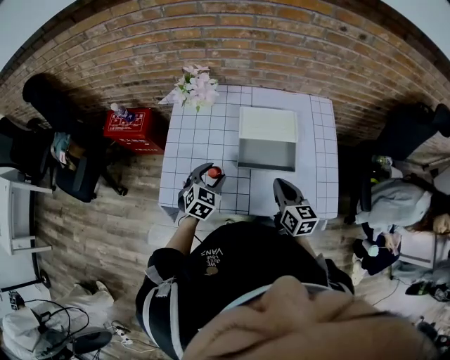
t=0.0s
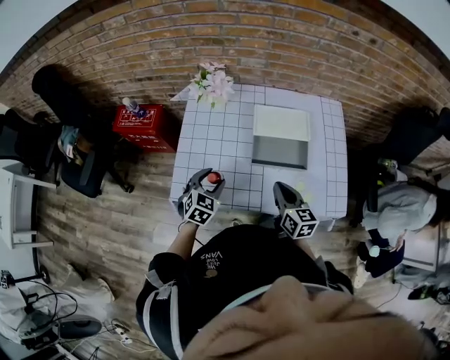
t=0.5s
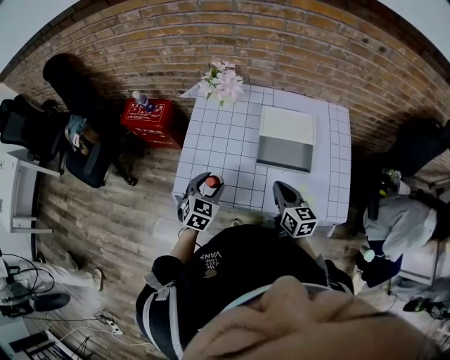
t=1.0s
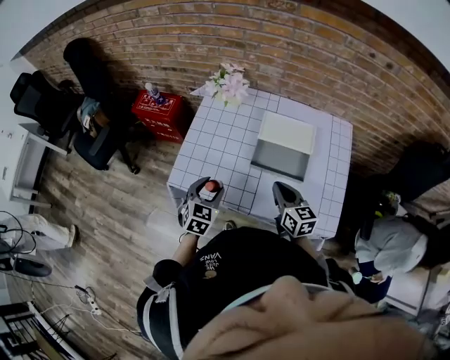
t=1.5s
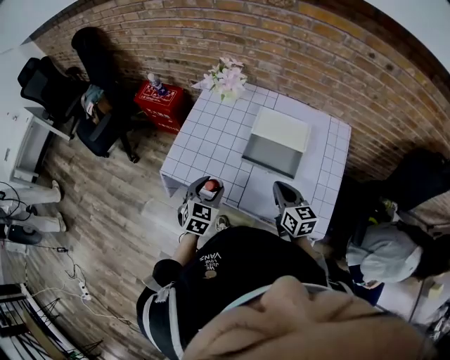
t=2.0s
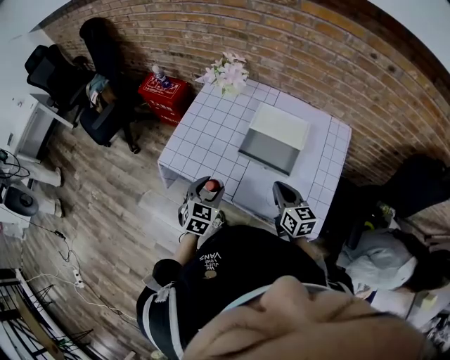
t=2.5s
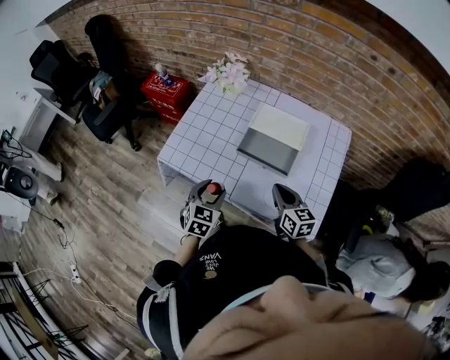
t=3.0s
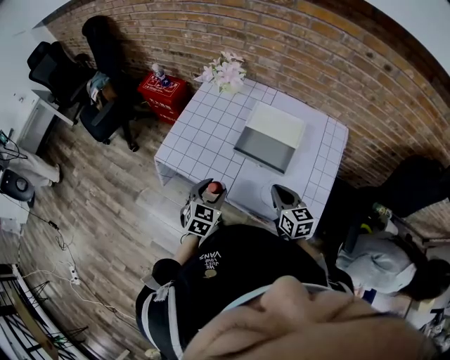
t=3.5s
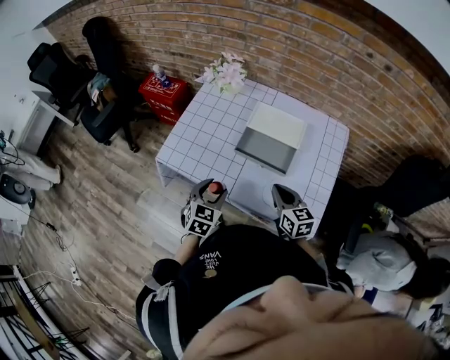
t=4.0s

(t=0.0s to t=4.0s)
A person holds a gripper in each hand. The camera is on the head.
t=0.0s - t=2.0s: The right gripper reaches approximately 5 cm to the left, then returns, and turns by some 20 degrees, while the left gripper moves backward, approximately 10 cm, and changes its angle by approximately 20 degrees.
t=2.0s - t=4.0s: The left gripper moves approximately 5 cm. Meanwhile the right gripper changes place by approximately 5 cm.

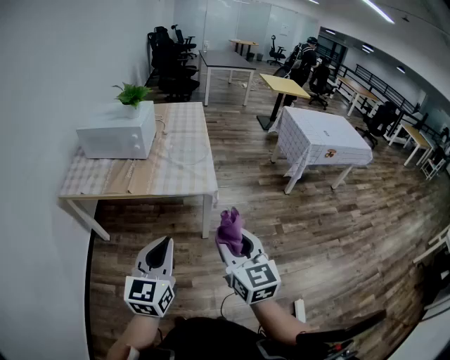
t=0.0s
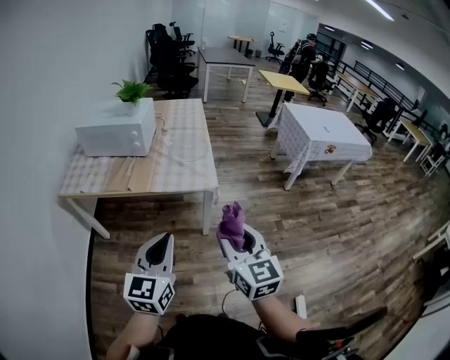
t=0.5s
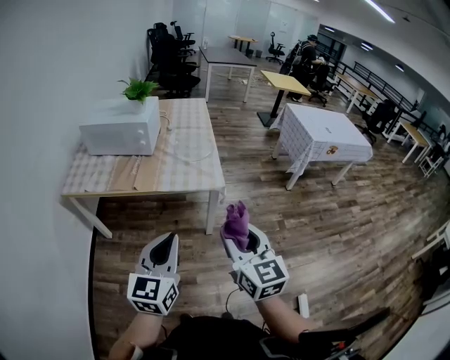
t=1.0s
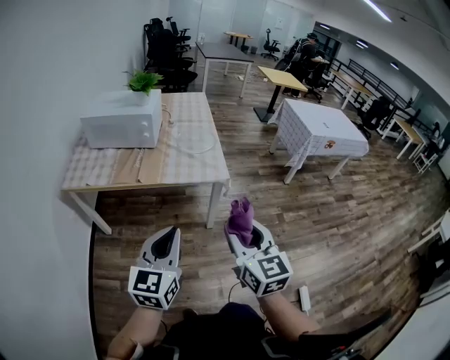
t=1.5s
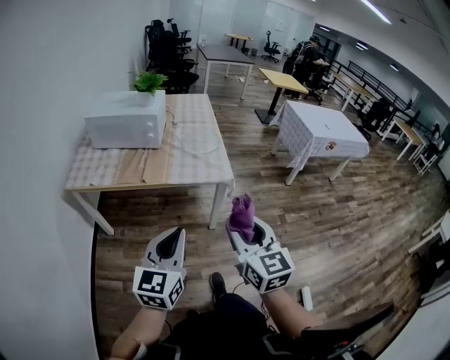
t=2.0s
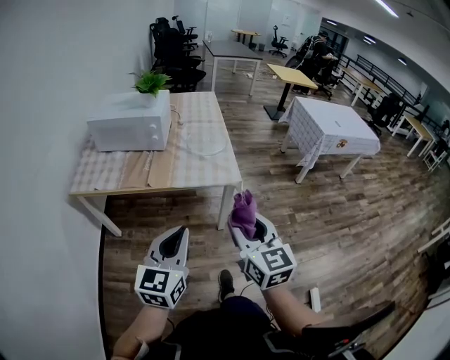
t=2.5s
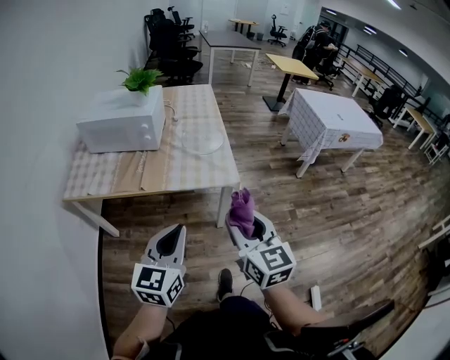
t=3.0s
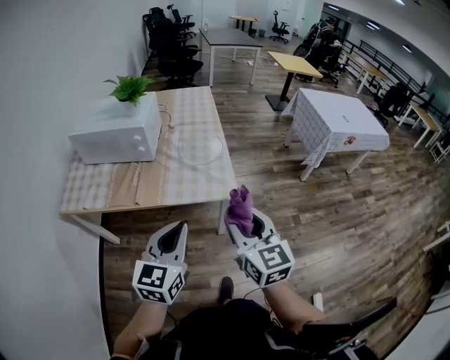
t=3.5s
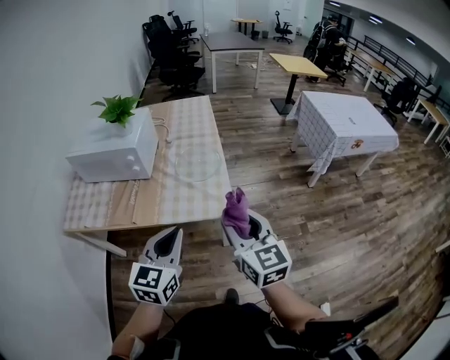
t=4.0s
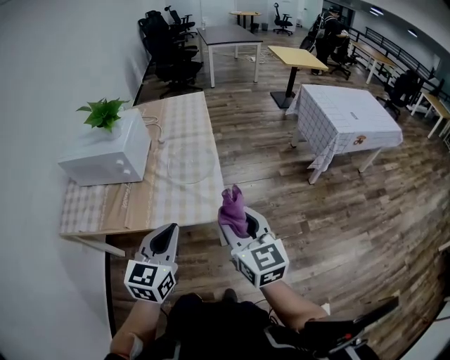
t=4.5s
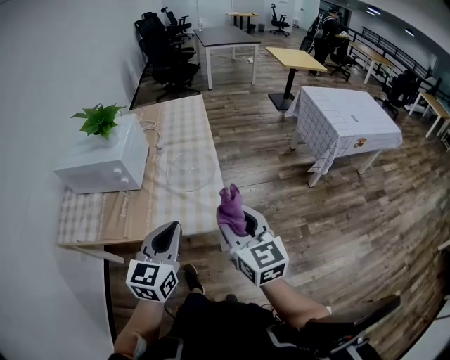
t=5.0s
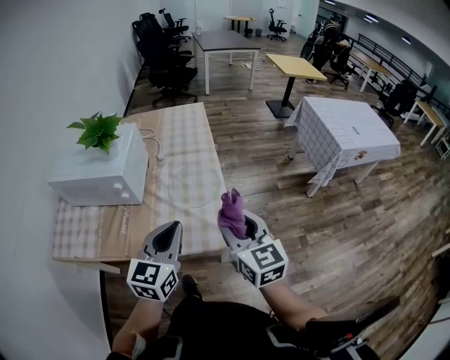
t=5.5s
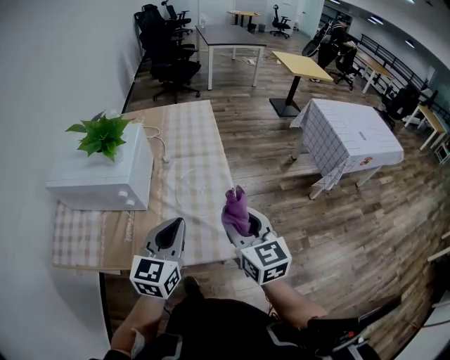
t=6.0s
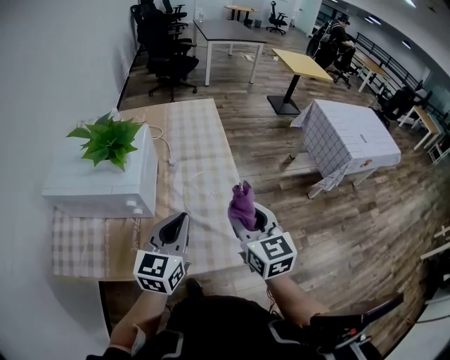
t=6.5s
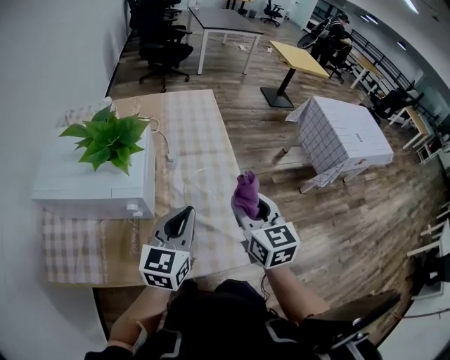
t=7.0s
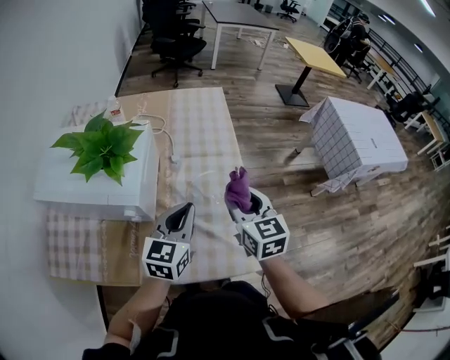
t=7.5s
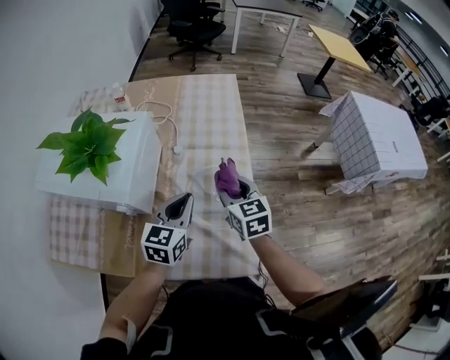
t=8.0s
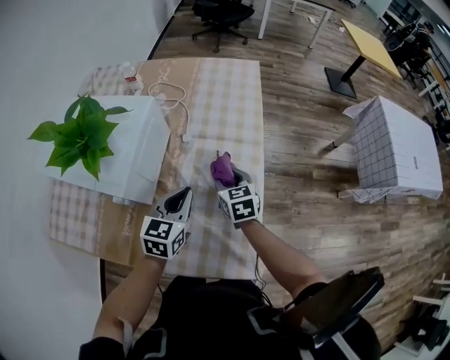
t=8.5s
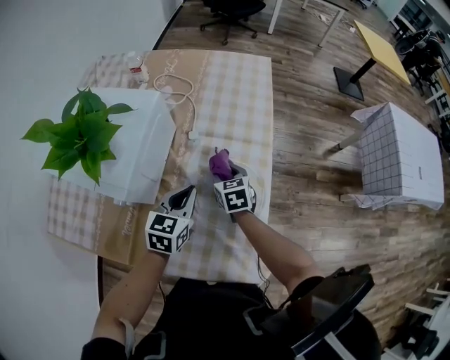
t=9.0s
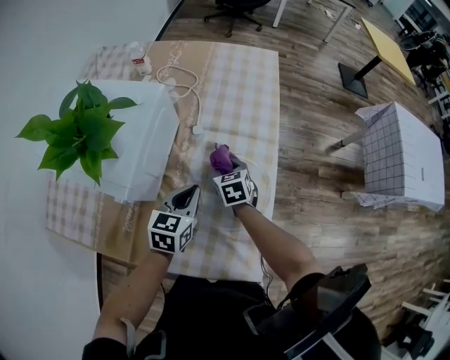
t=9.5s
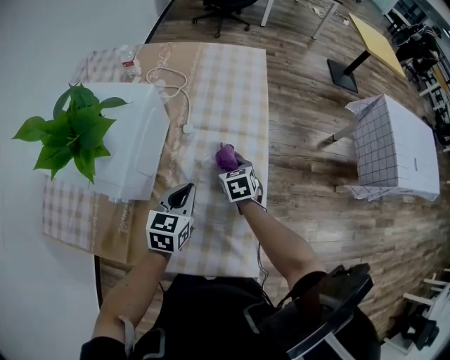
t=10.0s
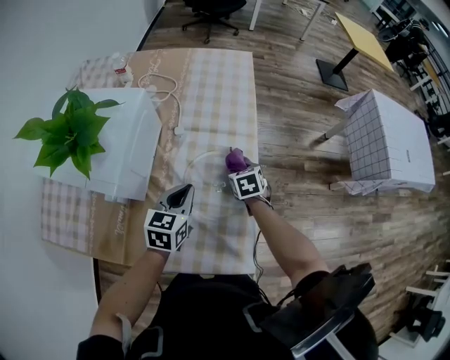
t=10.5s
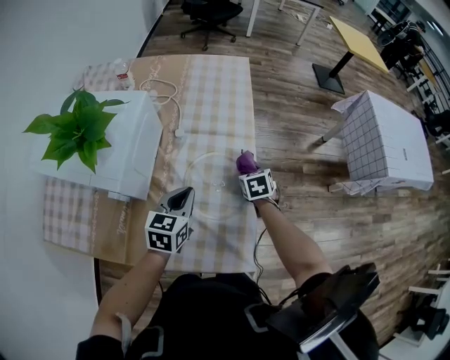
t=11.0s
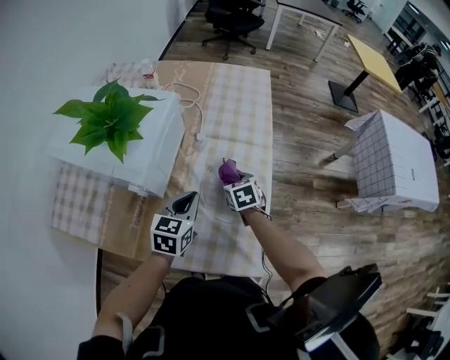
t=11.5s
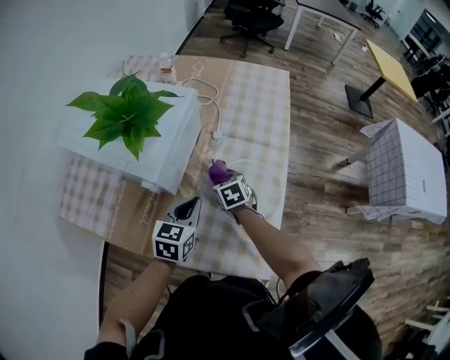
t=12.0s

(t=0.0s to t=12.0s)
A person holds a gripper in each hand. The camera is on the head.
t=0.0s - t=2.0s: The grippers both shift to the left by roughly 10 cm.
t=2.0s - t=4.0s: The two grippers go some 25 cm forward.
t=4.0s - t=6.0s: The two grippers go approximately 25 cm forward.
t=6.0s - t=8.0s: The two grippers go some 25 cm forward and downward.
t=8.0s - t=10.0s: The right gripper moves downward and forward, some 20 cm, and swivels approximately 20 degrees. The left gripper moves downward, about 10 cm.
t=10.0s - t=12.0s: The left gripper travels backward and to the left by some 10 cm, while the right gripper travels to the left and backward by roughly 10 cm.

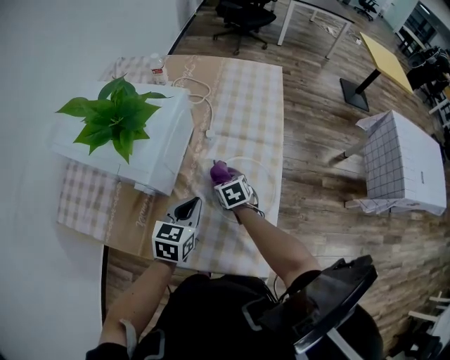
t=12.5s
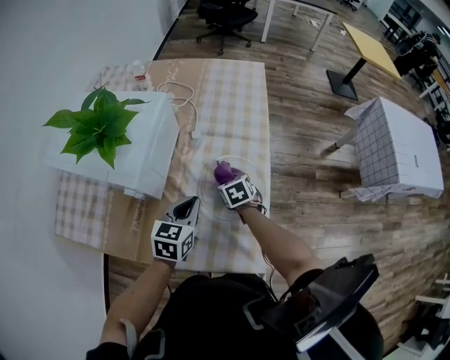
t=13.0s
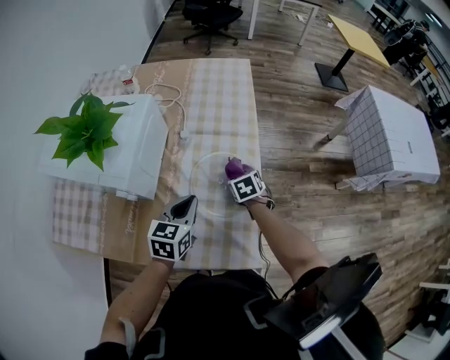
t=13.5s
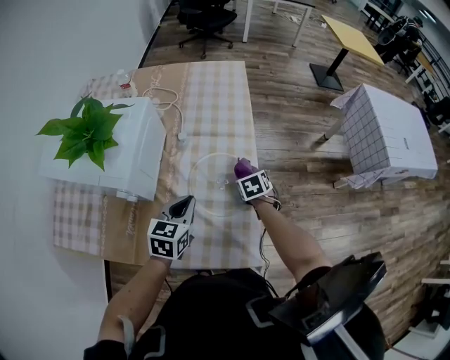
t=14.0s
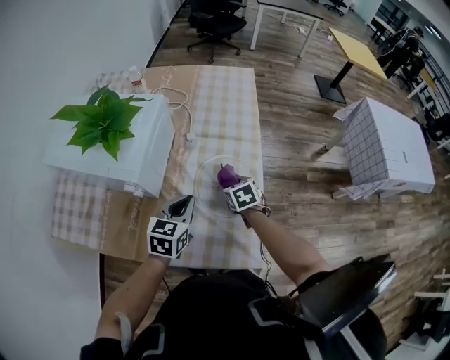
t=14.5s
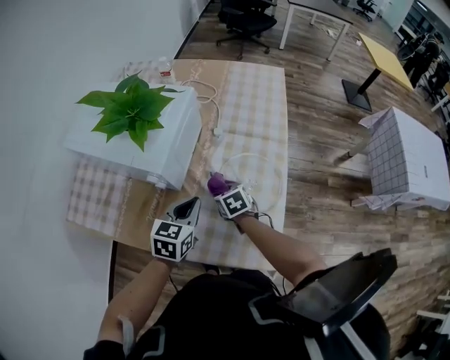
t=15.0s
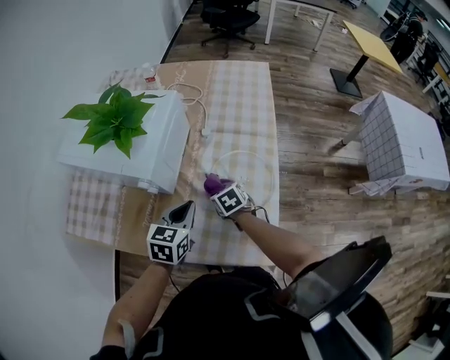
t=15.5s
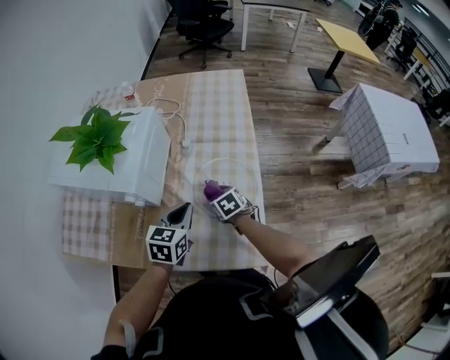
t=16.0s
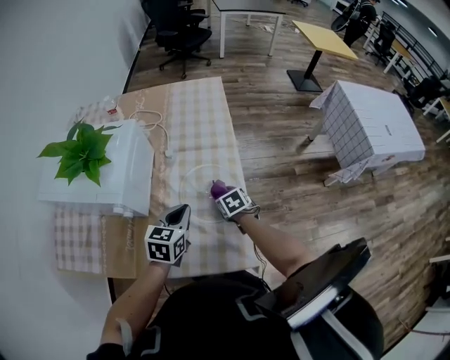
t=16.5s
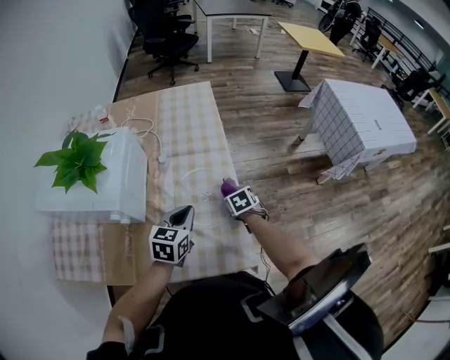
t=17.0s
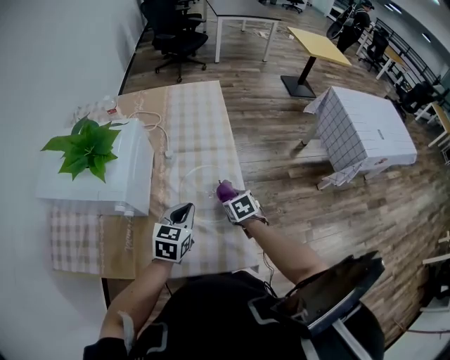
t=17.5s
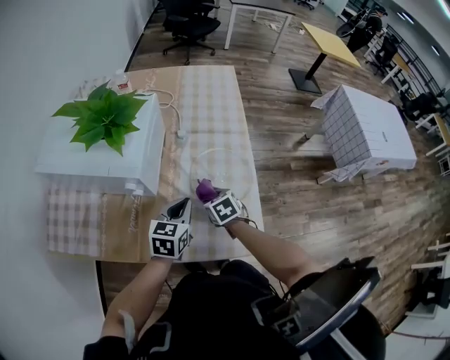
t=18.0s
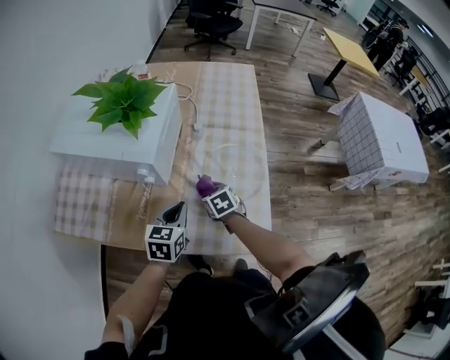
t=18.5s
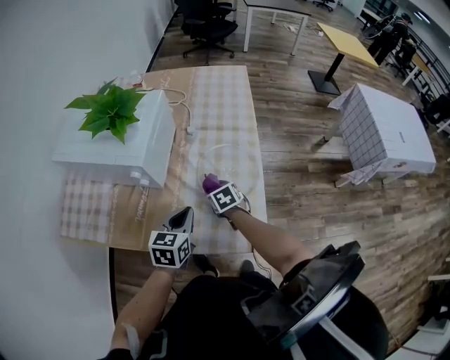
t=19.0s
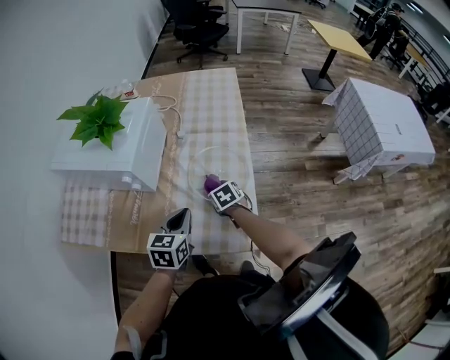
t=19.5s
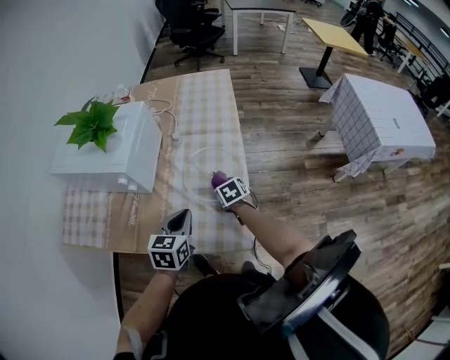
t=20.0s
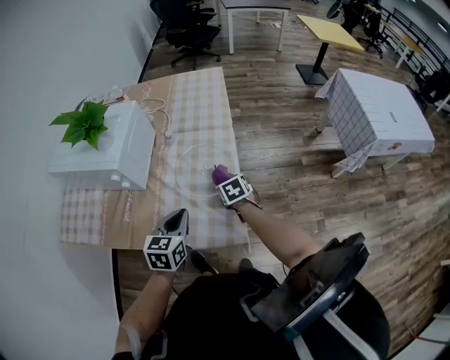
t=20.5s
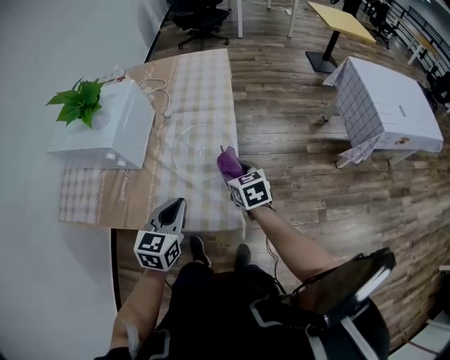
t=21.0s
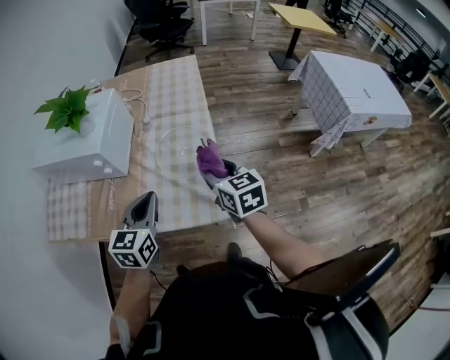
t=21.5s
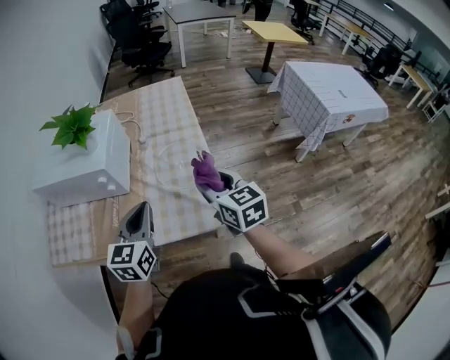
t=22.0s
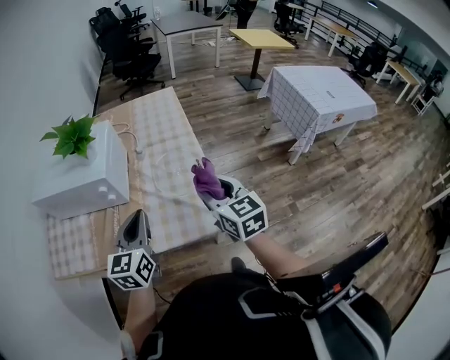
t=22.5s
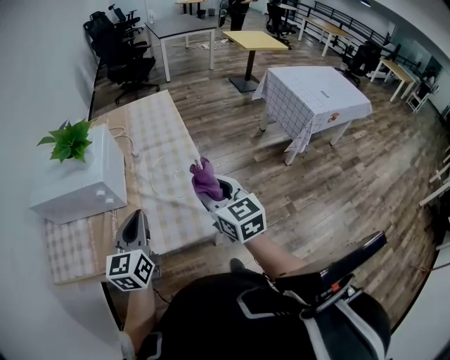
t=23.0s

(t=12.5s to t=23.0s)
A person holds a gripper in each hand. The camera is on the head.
t=12.5s - t=14.5s: The right gripper goes about 10 cm to the right.
t=14.5s - t=16.5s: The right gripper moves about 10 cm to the left and comes back.
t=16.5s - t=19.0s: The left gripper travels backward and to the left by some 10 cm; the right gripper moves left and right over about 20 cm, changing direction 2 times.
t=19.0s - t=21.0s: The right gripper shifts some 20 cm to the right and upward, and changes its angle by approximately 20 degrees; the left gripper shifts roughly 15 cm to the right, backward and upward.
t=21.0s - t=23.0s: The left gripper goes approximately 15 cm to the left and upward; the right gripper travels upward and backward by some 25 cm, and changes its angle by roughly 30 degrees.
